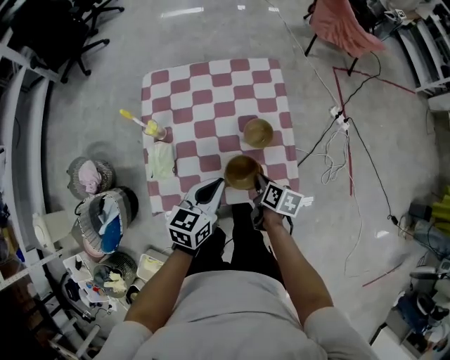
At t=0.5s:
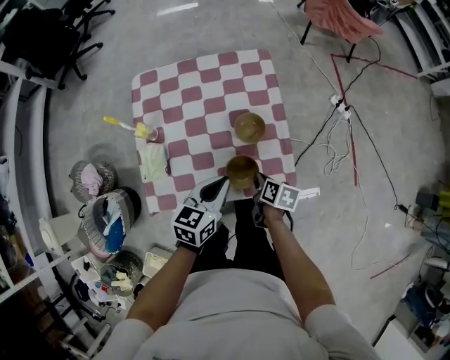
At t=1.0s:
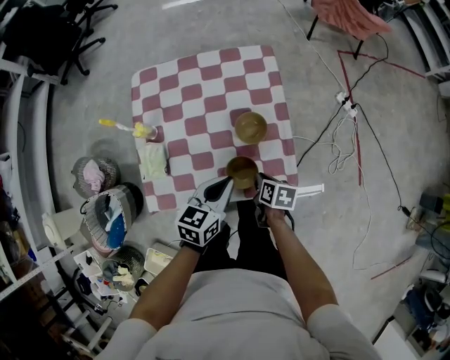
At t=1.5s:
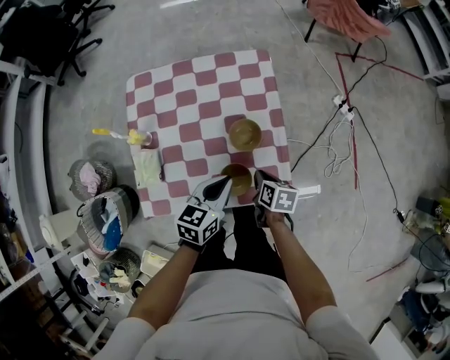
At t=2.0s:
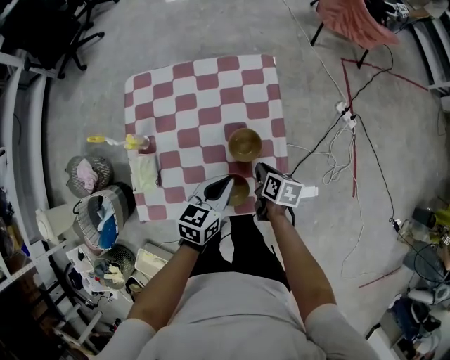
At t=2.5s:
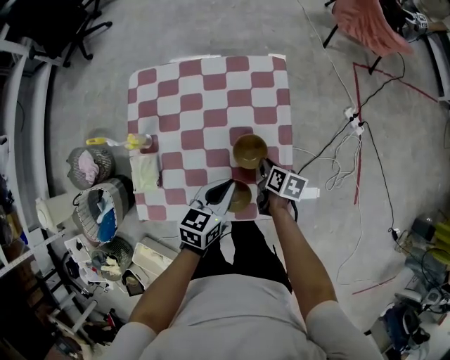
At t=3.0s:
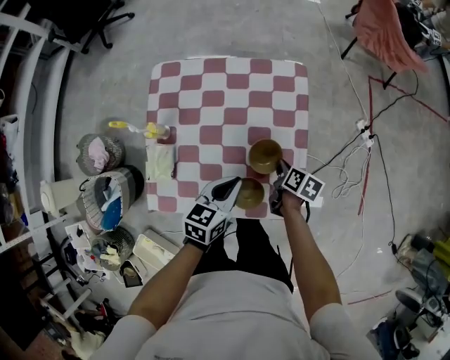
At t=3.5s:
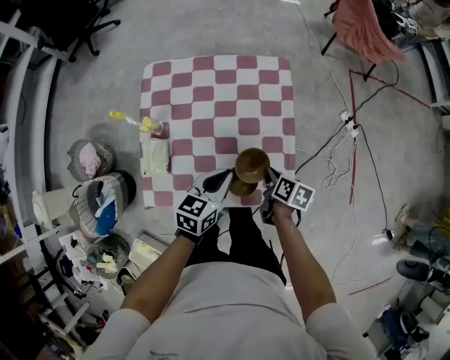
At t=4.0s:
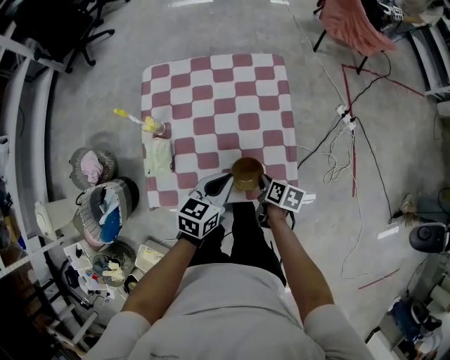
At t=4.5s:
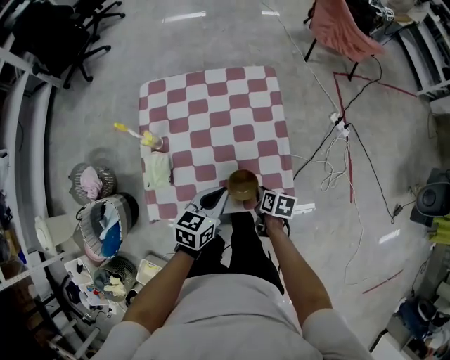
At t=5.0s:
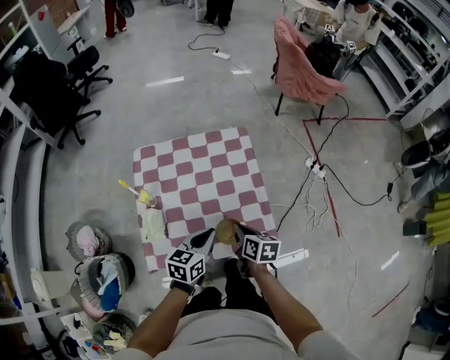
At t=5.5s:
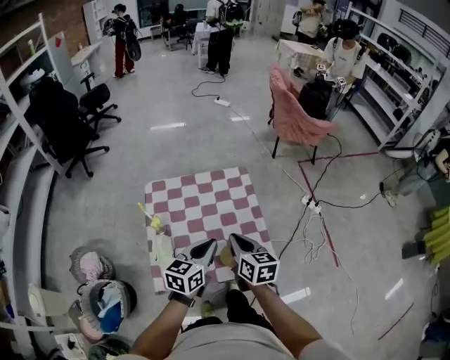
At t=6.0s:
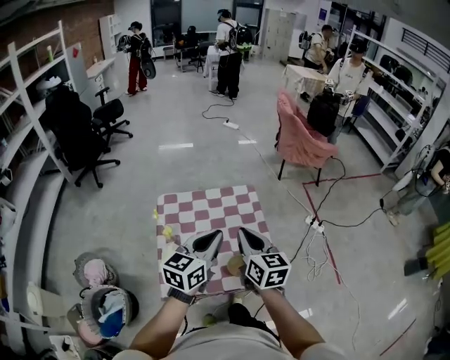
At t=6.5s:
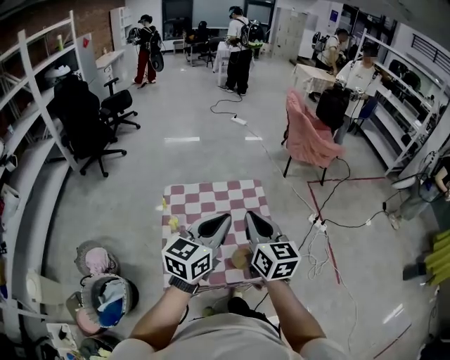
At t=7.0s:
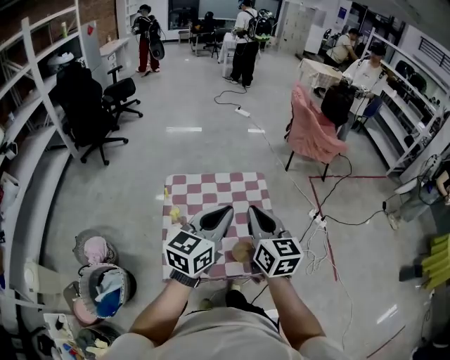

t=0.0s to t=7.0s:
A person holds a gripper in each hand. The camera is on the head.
t=0.0s to t=2.0s: The right gripper is displaced forward and to the right by approximately 10 cm. The left gripper heads to the right and forward, covering roughly 10 cm.
t=2.0s to t=3.5s: The grippers make only small movements.
t=3.5s to t=5.0s: The right gripper moves upward, to the left and backward, about 15 cm; the left gripper travels upward by roughly 5 cm.
t=5.0s to t=7.0s: Both grippers travel together upward, roughly 30 cm. The left gripper turns by approximately 30 degrees, while the right gripper tilts its fingers some 30 degrees upward.

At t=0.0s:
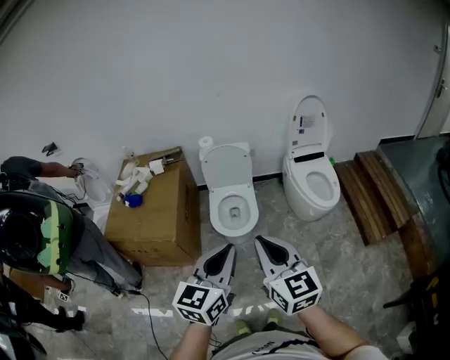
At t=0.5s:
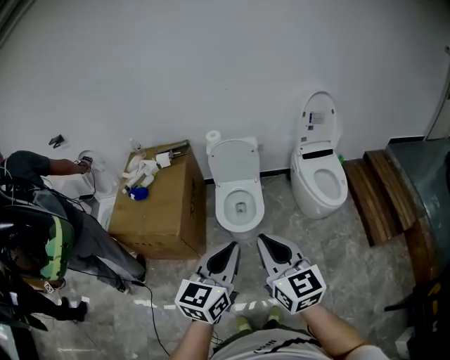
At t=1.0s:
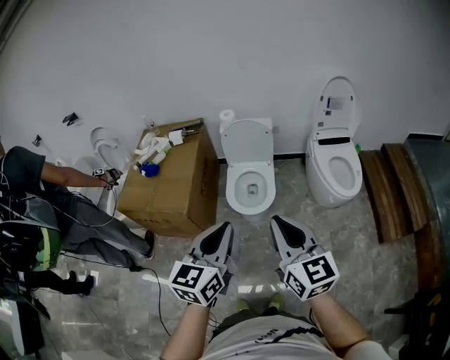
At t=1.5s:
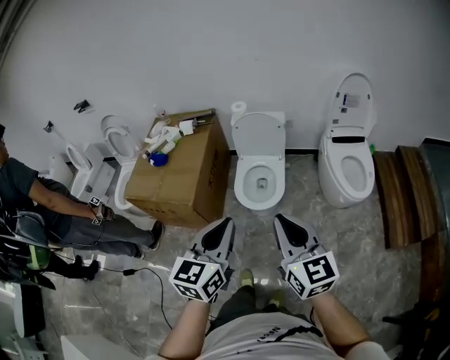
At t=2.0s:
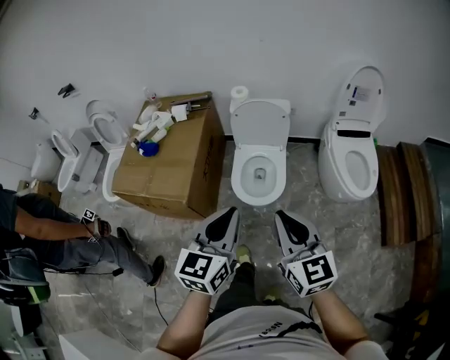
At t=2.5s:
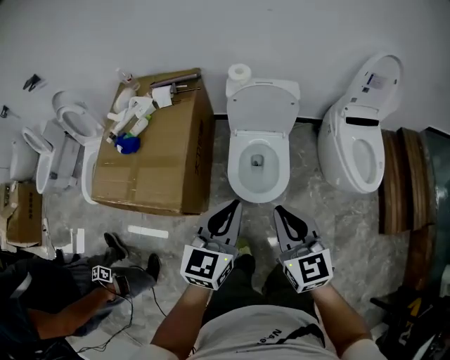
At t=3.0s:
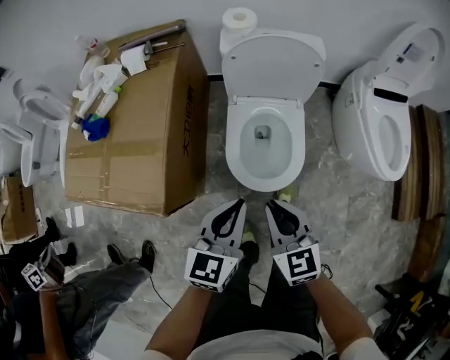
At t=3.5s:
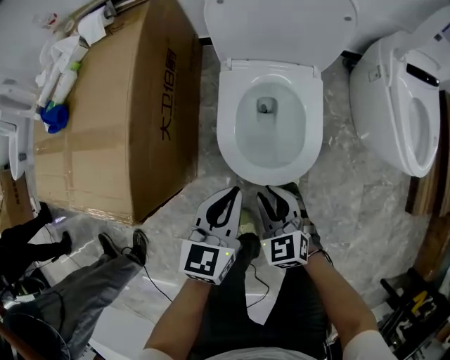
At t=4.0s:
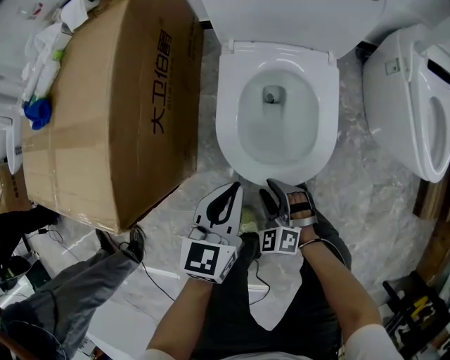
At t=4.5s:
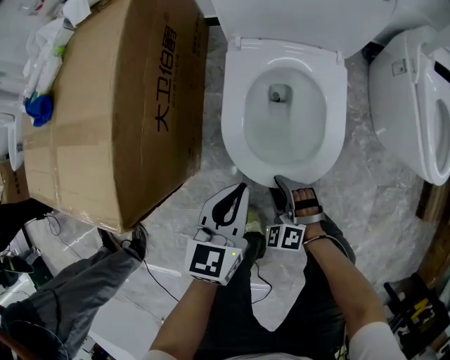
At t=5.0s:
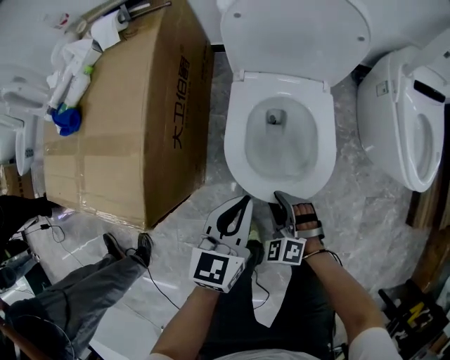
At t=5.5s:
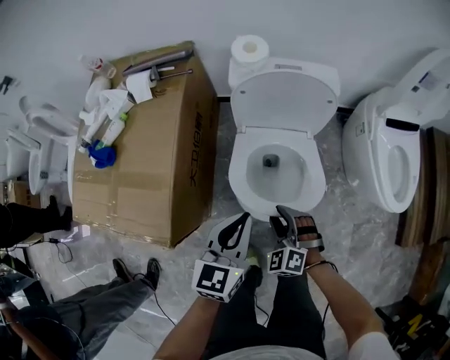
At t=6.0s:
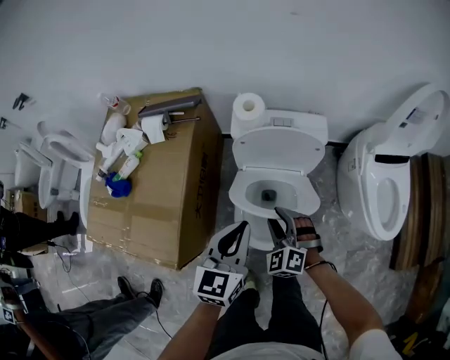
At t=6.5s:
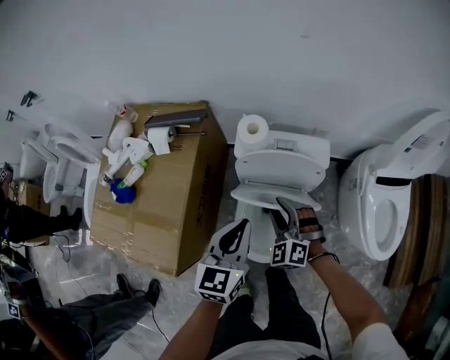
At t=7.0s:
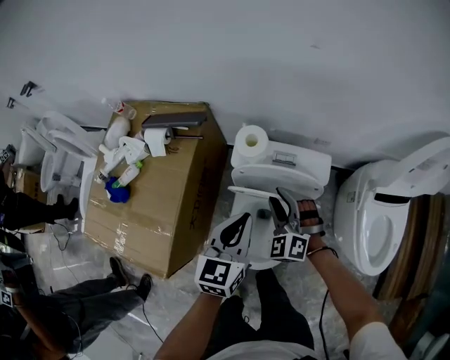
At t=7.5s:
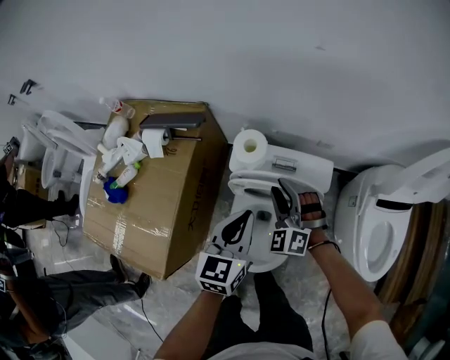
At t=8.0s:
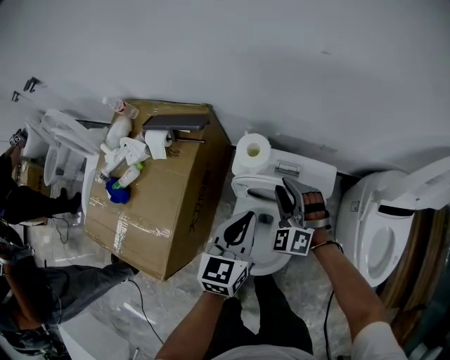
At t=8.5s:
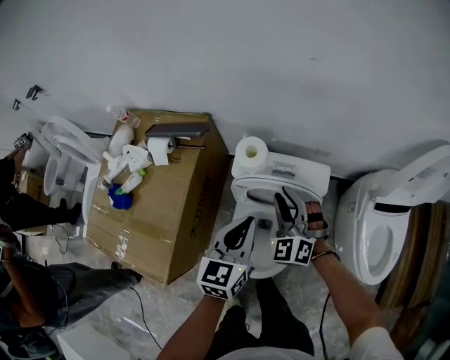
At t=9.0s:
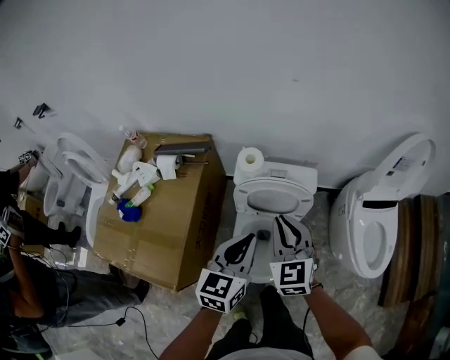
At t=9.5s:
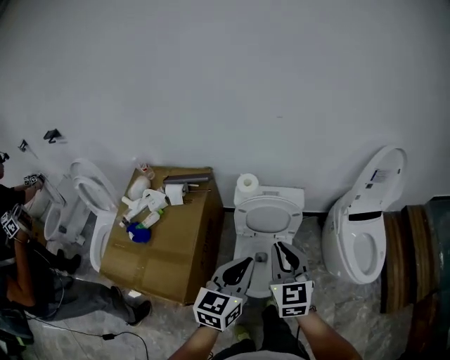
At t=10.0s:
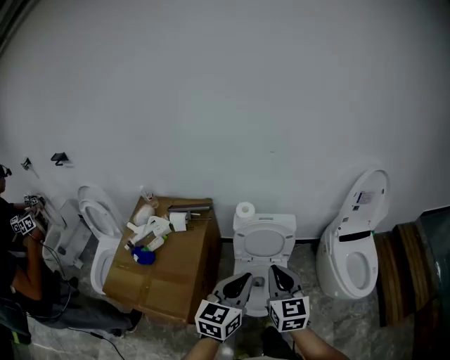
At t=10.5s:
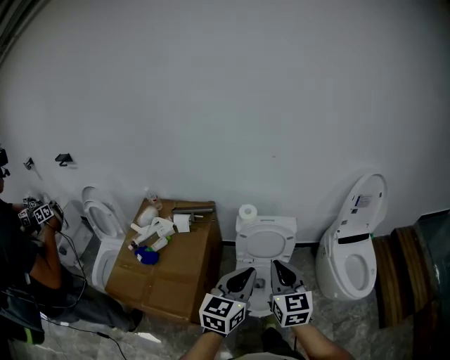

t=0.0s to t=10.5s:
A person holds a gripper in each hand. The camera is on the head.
t=0.0s to t=2.0s: Both grippers travel together forward and downward, roughly 15 cm.
t=2.0s to t=4.0s: The right gripper heads downward, covering some 70 cm, points its fingers roughly 40 degrees further downward, and opens its fingers. Meanwhile the left gripper shifts approximately 60 cm downward and forward, and turns by some 20 degrees.
t=4.0s to t=6.5s: The two grippers go about 50 cm upward and forward.
t=6.5s to t=8.5s: The left gripper travels forward by approximately 10 cm. Meanwhile the right gripper goes some 15 cm forward and upward.
t=8.5s to t=10.5s: Both grippers move backward and upward, approximately 40 cm. The right gripper rotates around the line of its fingers by roughly 50 degrees, clockwise from behind, and closes, while the left gripper changes its angle by about 20 degrees.

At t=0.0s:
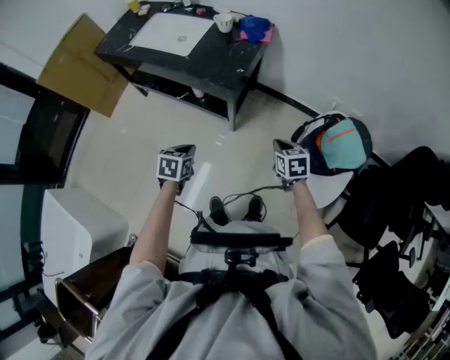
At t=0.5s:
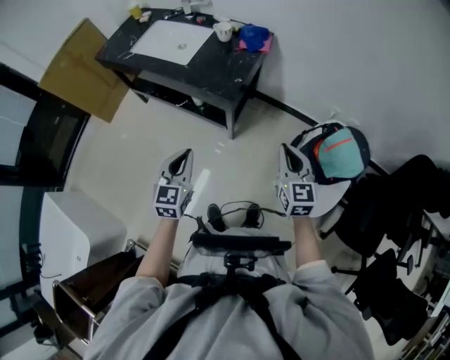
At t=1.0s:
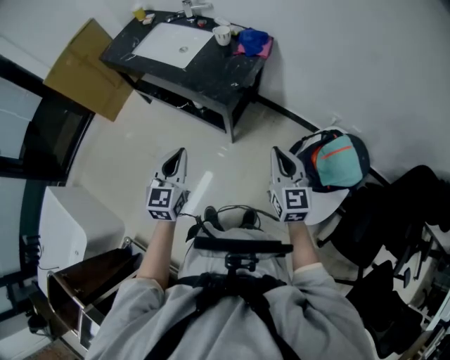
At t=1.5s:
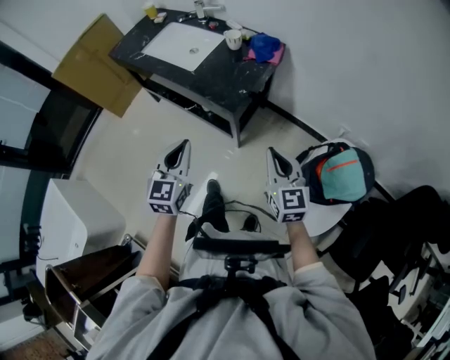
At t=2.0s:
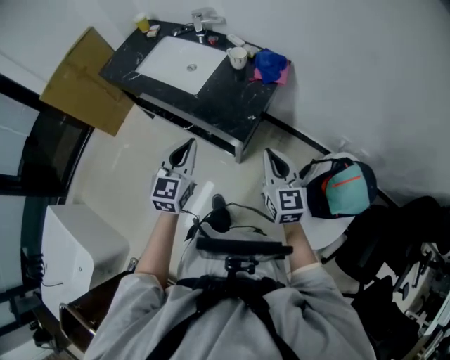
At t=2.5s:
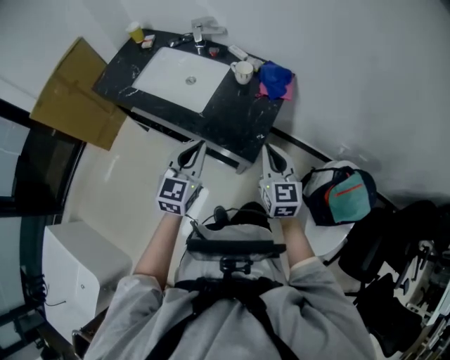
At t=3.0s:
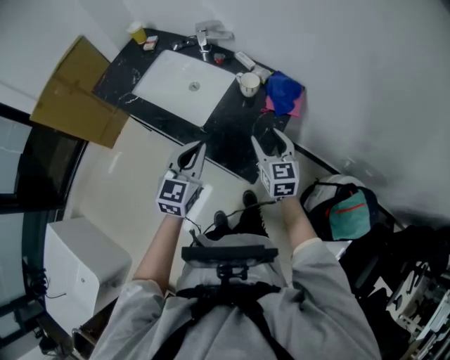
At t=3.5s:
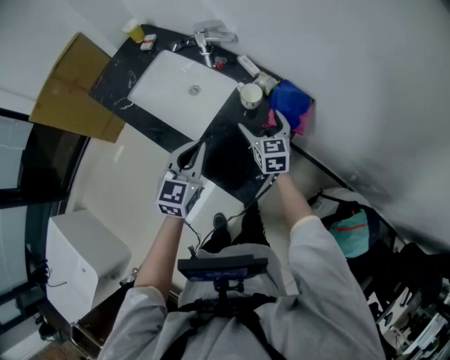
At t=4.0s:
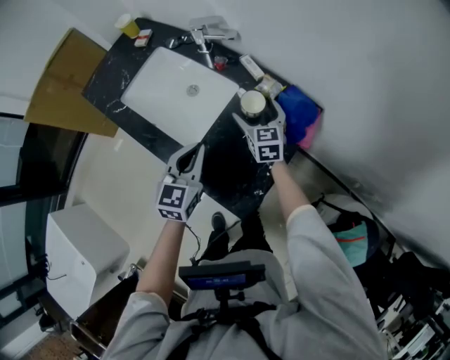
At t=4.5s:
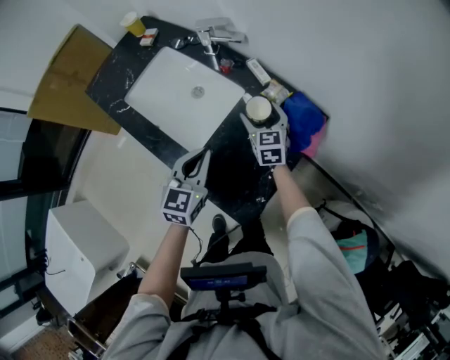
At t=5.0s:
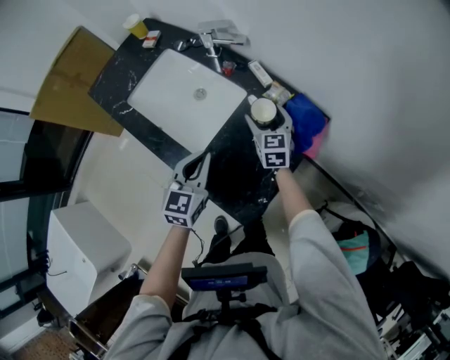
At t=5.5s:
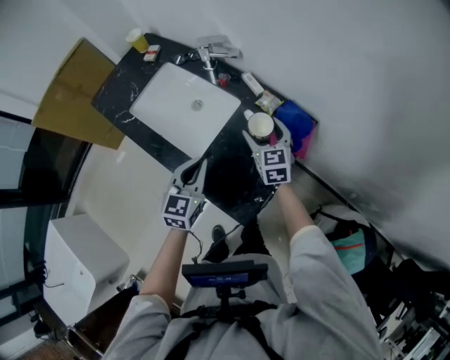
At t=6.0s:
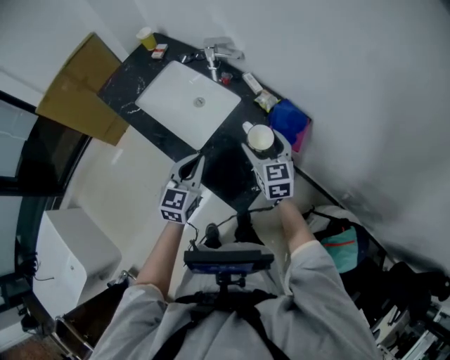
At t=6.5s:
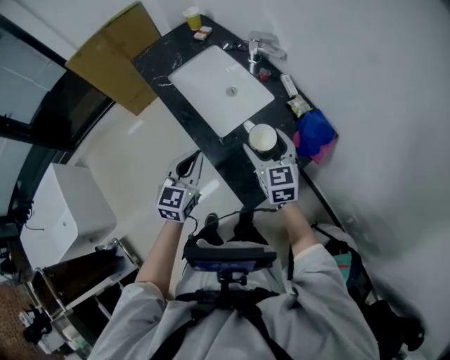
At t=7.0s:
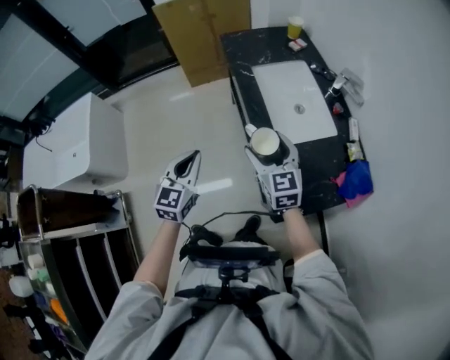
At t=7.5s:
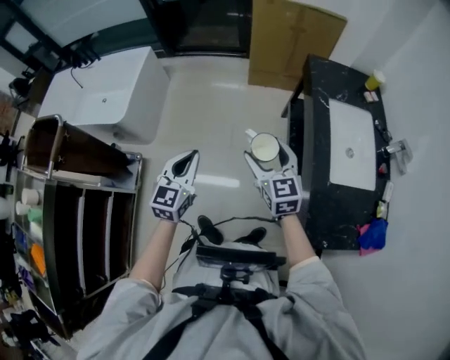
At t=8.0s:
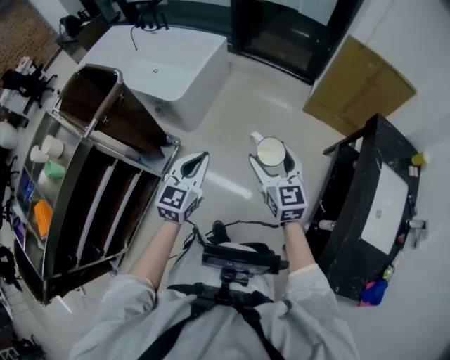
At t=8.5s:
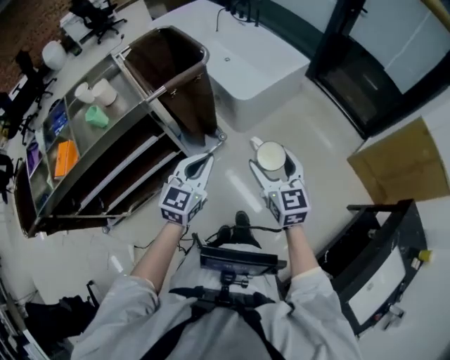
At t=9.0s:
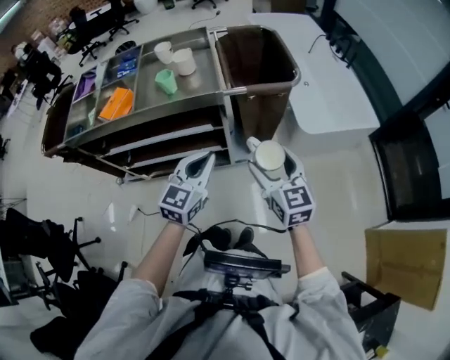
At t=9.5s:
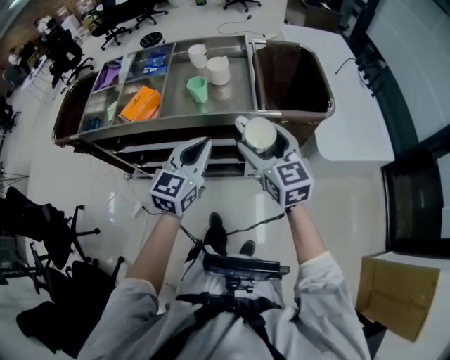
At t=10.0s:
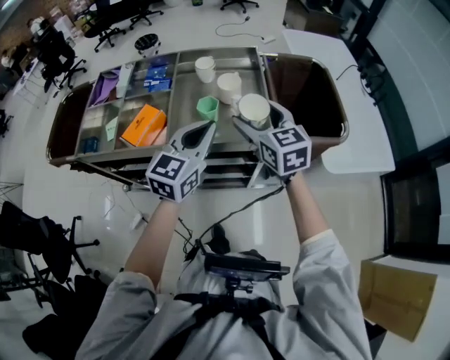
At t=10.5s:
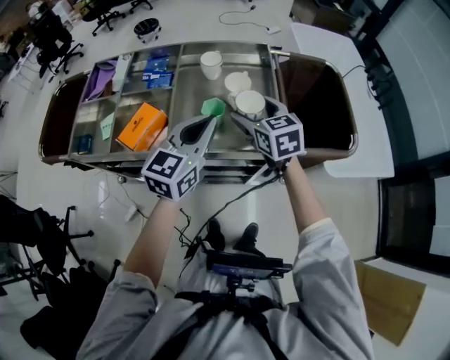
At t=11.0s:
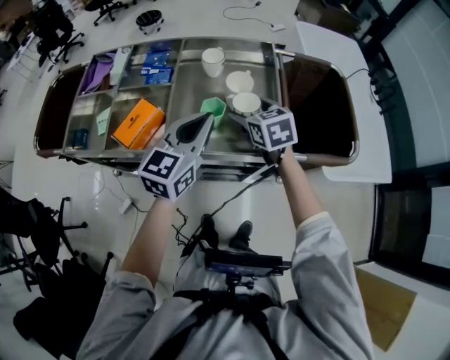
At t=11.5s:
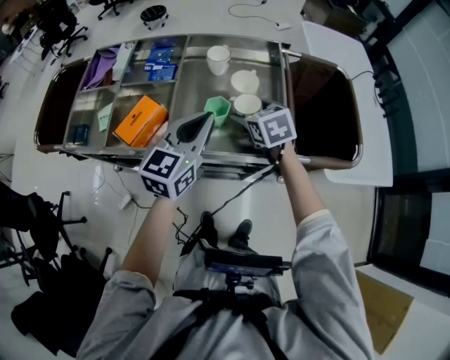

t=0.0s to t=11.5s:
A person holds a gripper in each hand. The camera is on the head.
t=0.0s to t=2.0s: The right gripper heads upward, forward and to the left, covering roughly 25 cm, and tips its fingers upward by approximately 30 degrees. Meanwhile the left gripper moves upward and forward, about 25 cm, and angles its fingers upward, by approximately 40 degrees.
t=2.0s to t=4.0s: The right gripper is displaced forward by roughly 50 cm, and opens, while the left gripper moves forward, roughly 30 cm.
t=4.0s to t=6.0s: The left gripper is displaced backward by about 5 cm. The right gripper travels backward and upward by some 15 cm.
t=6.0s to t=7.5s: The two grippers travel together, roughly 50 cm. The right gripper rotates roughly 60 degrees, while the left gripper swivels approximately 60 degrees.
t=7.5s to t=9.5s: Both grippers are carried about 70 cm. The right gripper swivels some 90 degrees. The left gripper changes its angle by about 80 degrees.
t=9.5s to t=11.5s: The grippers both shift forward by roughly 25 cm. The right gripper angles its fingers downward, by about 30 degrees.
